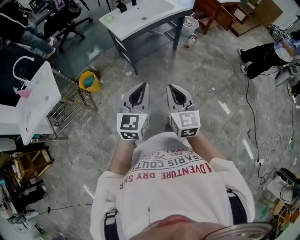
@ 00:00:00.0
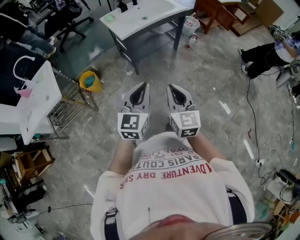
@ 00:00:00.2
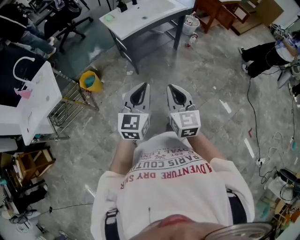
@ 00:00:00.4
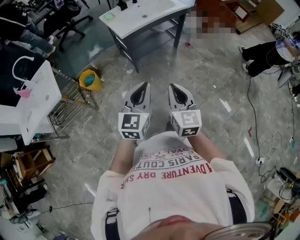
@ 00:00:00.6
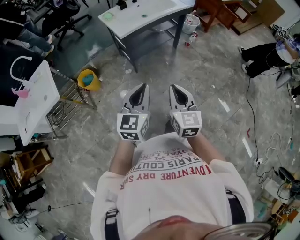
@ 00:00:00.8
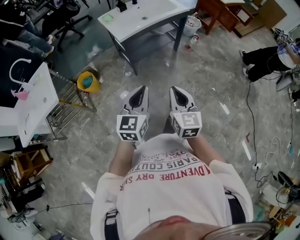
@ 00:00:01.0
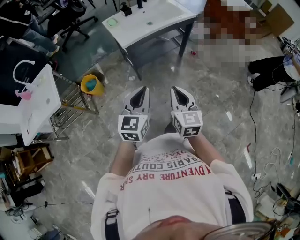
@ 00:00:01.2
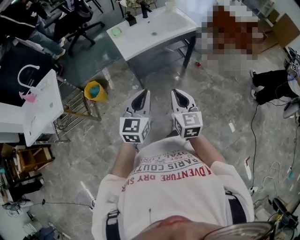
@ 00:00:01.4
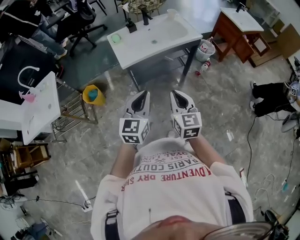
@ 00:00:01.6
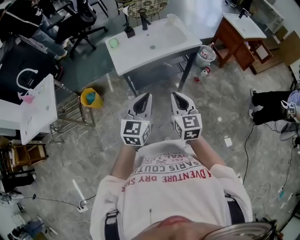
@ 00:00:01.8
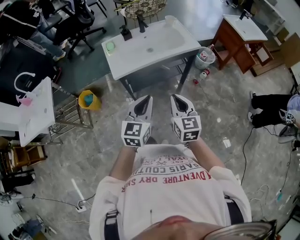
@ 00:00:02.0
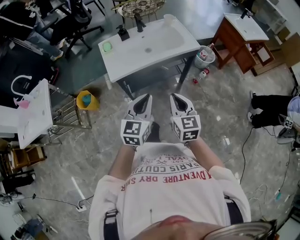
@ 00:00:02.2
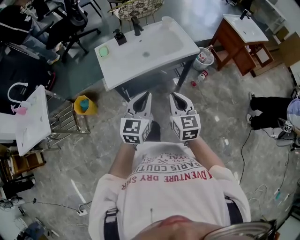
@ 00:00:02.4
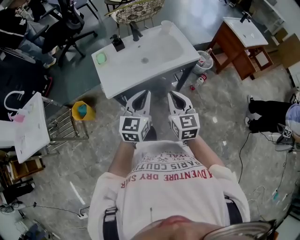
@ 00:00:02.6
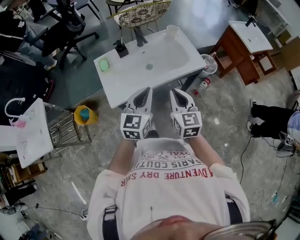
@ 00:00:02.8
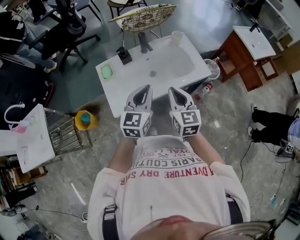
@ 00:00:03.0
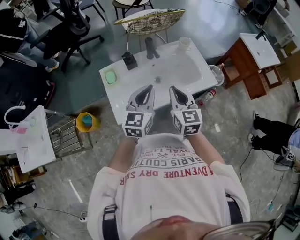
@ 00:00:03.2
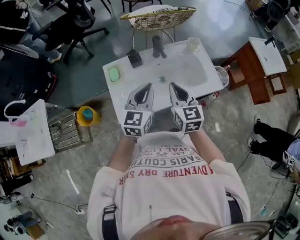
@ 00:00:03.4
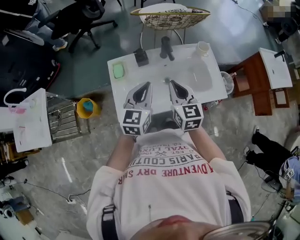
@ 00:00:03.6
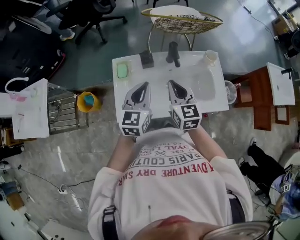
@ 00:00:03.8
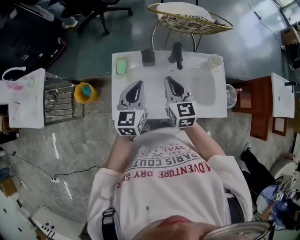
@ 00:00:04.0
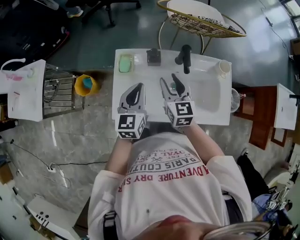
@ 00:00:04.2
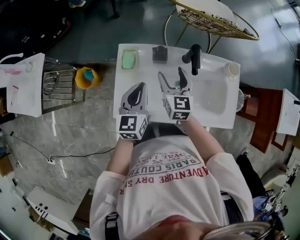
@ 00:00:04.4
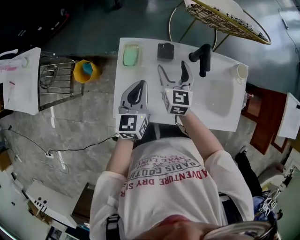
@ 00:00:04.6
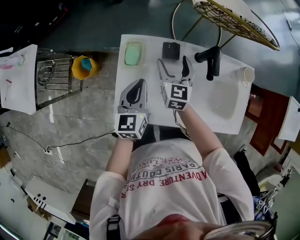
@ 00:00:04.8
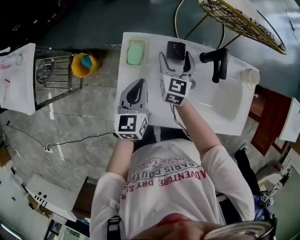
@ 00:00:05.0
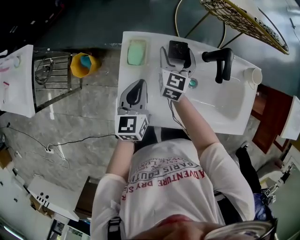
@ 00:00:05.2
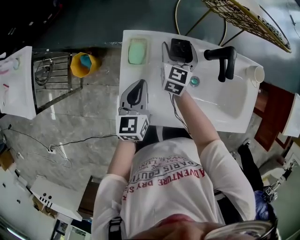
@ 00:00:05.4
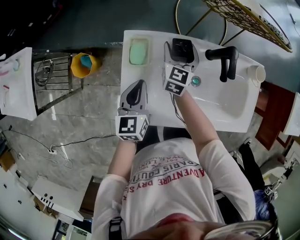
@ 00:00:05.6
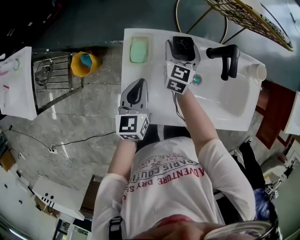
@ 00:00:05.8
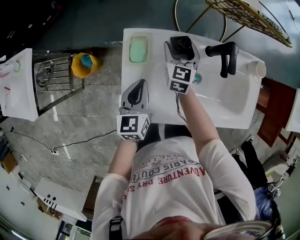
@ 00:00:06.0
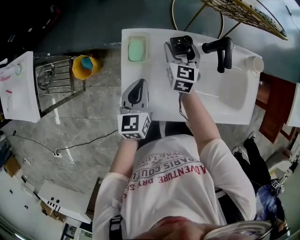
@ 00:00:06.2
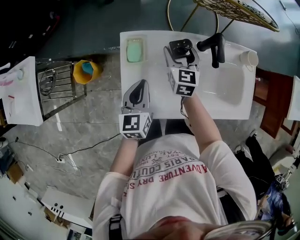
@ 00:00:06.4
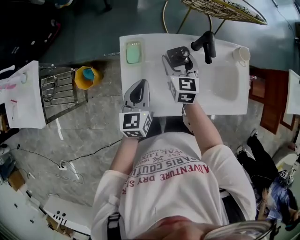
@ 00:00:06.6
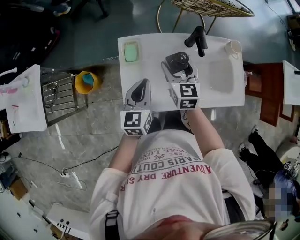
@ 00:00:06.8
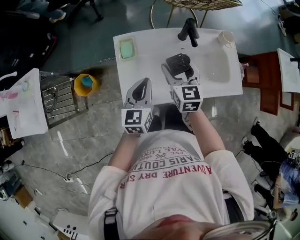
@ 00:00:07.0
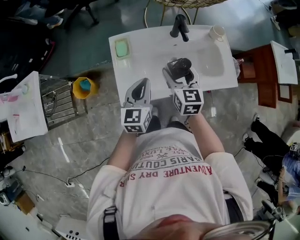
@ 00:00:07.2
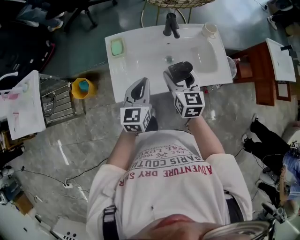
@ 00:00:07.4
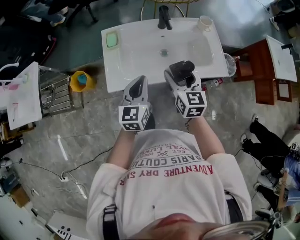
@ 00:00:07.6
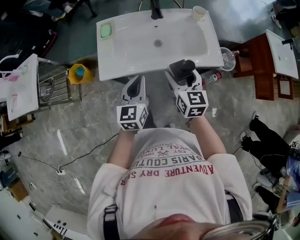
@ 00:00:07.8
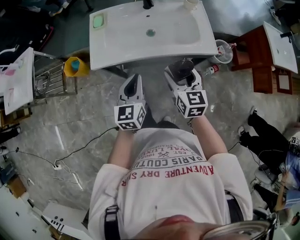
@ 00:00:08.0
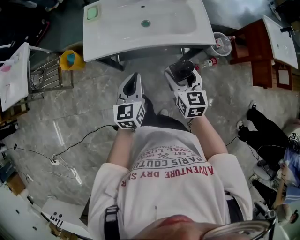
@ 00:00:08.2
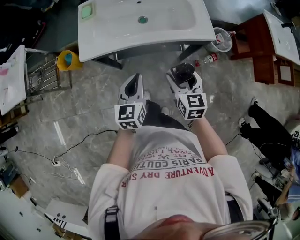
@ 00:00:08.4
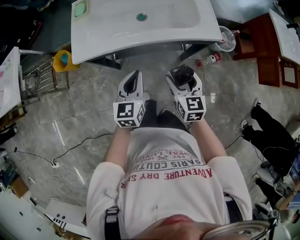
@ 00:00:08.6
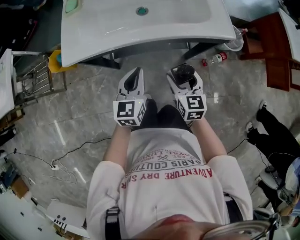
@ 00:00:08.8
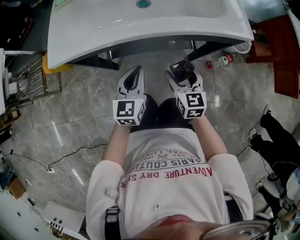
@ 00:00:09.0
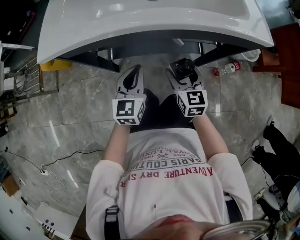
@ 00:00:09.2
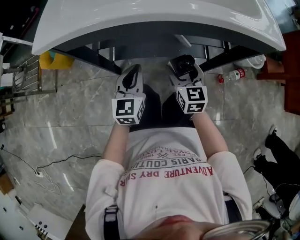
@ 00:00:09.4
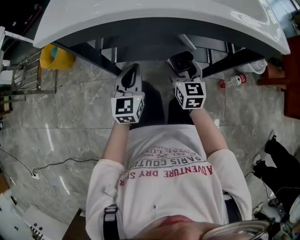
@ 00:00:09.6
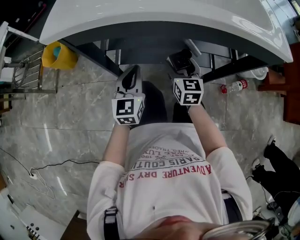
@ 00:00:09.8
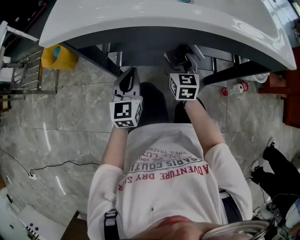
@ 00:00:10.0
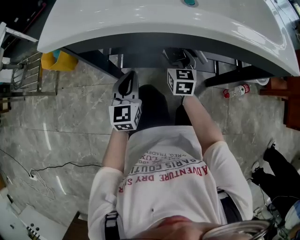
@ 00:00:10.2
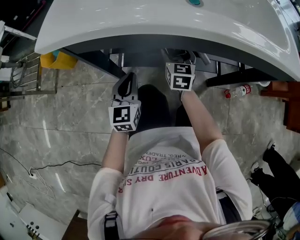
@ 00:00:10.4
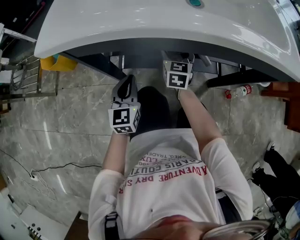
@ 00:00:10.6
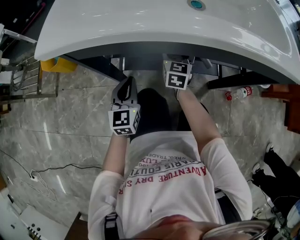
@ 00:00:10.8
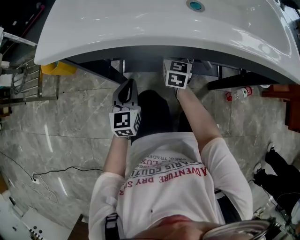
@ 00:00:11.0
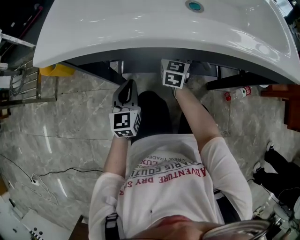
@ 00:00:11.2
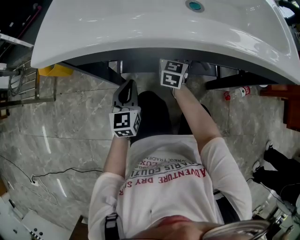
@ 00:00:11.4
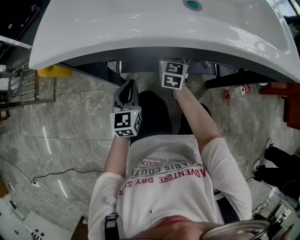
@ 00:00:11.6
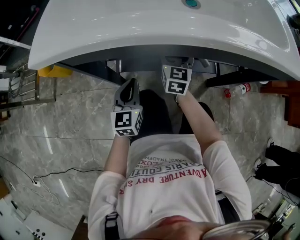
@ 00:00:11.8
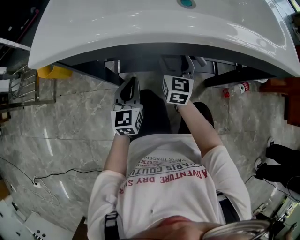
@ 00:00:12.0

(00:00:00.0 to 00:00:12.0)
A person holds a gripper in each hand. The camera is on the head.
00:00:00.0 - 00:00:01.6: The grippers both shift forward by approximately 25 cm.
00:00:01.6 - 00:00:03.0: The grippers both shift forward by roughly 40 cm.
00:00:03.0 - 00:00:04.4: The right gripper shifts by approximately 35 cm, changes its angle by roughly 20 degrees, and opens, while the left gripper changes place by some 25 cm, and changes its angle by approximately 40 degrees.
00:00:04.4 - 00:00:06.0: The right gripper travels downward, forward and to the left by about 15 cm. The left gripper heads downward and to the left, covering approximately 15 cm.
00:00:06.0 - 00:00:07.6: The right gripper is displaced backward, upward and to the right by some 40 cm, while the left gripper goes approximately 25 cm backward, to the right and upward.
00:00:07.6 - 00:00:09.0: Both grippers travel together downward, about 35 cm.
00:00:09.0 - 00:00:10.4: The left gripper goes about 20 cm downward and to the left, while the right gripper is displaced forward, downward and to the left by roughly 30 cm.
00:00:10.4 - 00:00:12.0: The grippers move only a little.

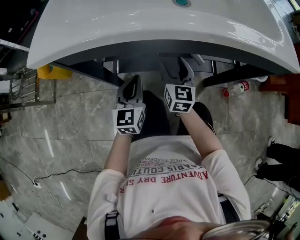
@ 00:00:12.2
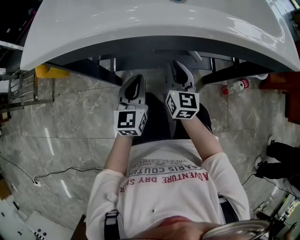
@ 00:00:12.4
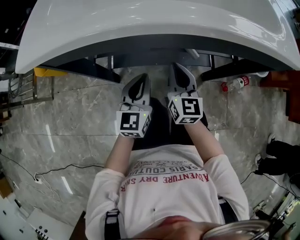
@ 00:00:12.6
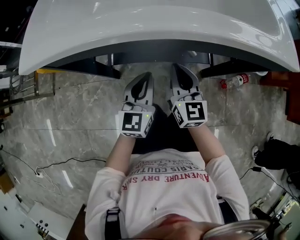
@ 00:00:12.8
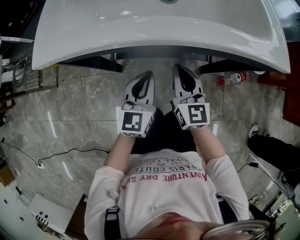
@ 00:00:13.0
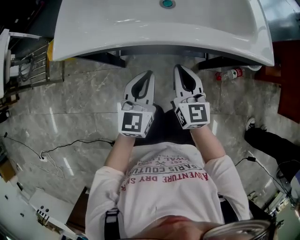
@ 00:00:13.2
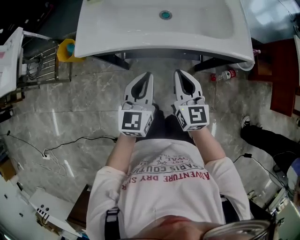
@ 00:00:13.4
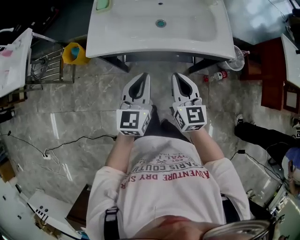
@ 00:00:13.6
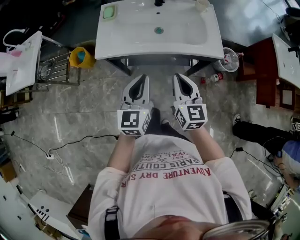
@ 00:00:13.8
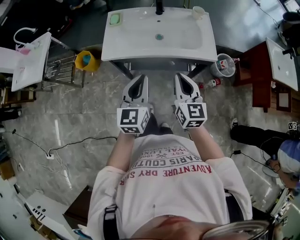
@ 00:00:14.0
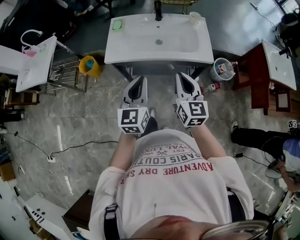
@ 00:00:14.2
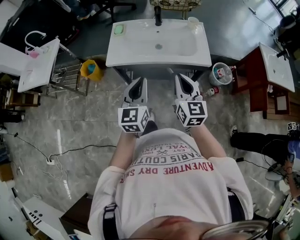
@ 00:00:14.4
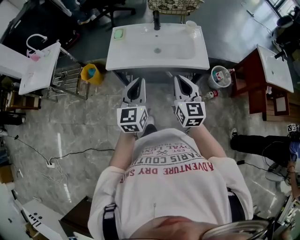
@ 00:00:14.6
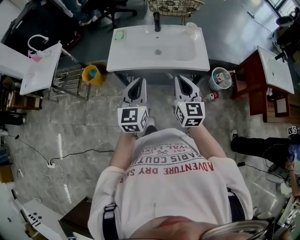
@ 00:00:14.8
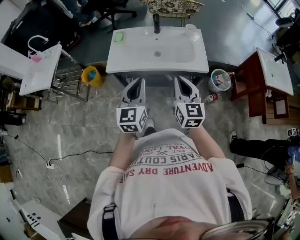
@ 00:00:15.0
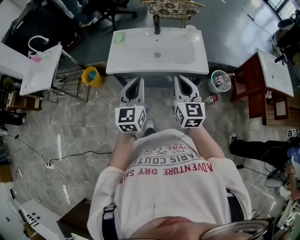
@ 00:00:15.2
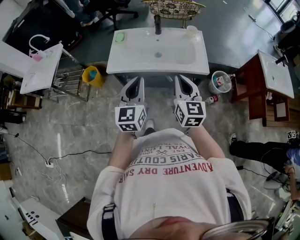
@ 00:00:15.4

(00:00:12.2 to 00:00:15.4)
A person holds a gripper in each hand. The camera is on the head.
00:00:12.2 - 00:00:13.8: The left gripper travels upward by approximately 50 cm, while the right gripper heads upward and backward, covering about 50 cm, and closes.
00:00:13.8 - 00:00:15.4: Both grippers travel together upward, approximately 15 cm.

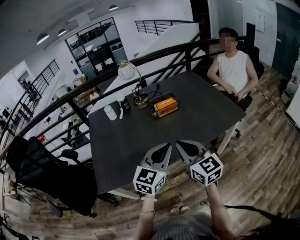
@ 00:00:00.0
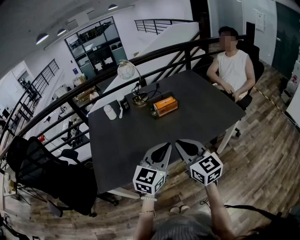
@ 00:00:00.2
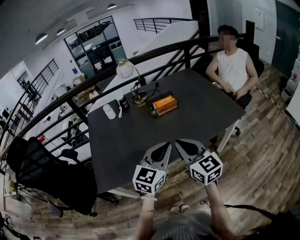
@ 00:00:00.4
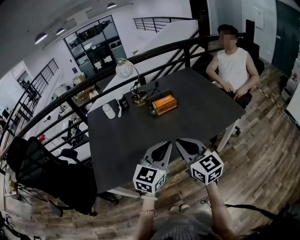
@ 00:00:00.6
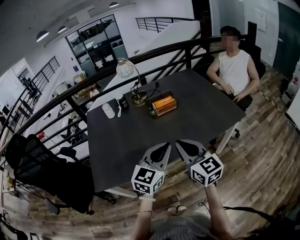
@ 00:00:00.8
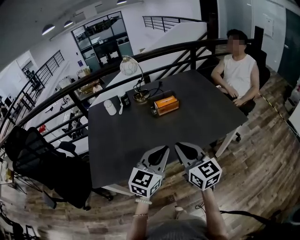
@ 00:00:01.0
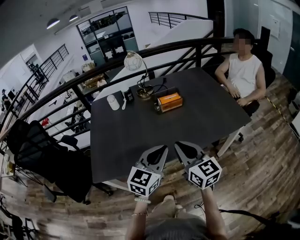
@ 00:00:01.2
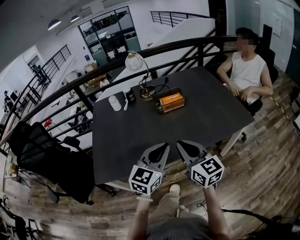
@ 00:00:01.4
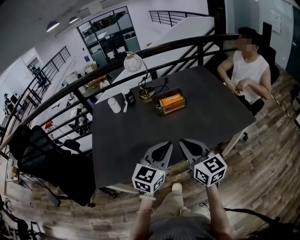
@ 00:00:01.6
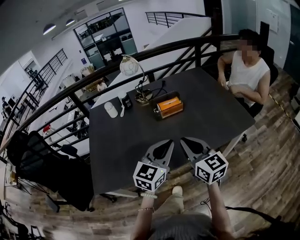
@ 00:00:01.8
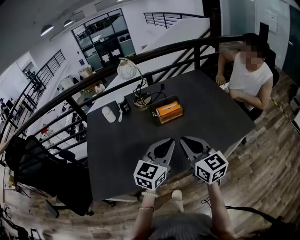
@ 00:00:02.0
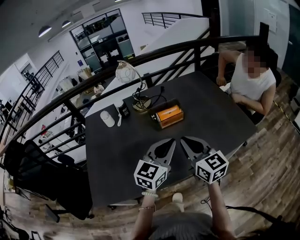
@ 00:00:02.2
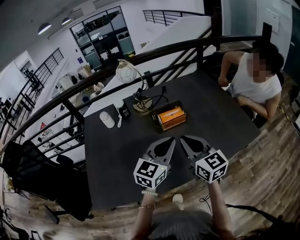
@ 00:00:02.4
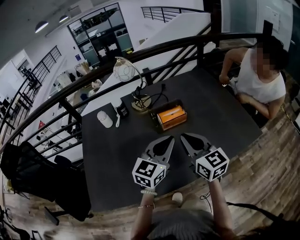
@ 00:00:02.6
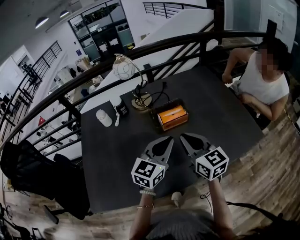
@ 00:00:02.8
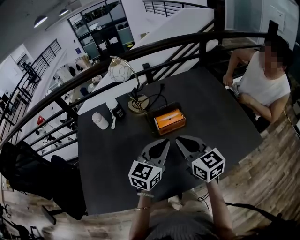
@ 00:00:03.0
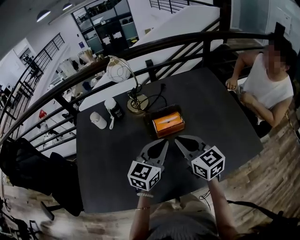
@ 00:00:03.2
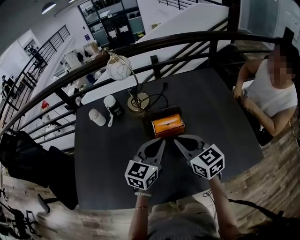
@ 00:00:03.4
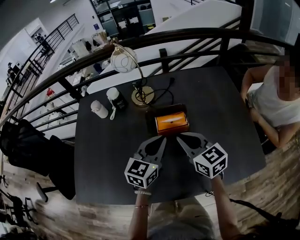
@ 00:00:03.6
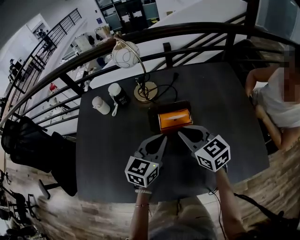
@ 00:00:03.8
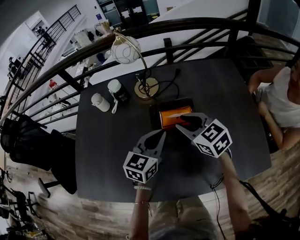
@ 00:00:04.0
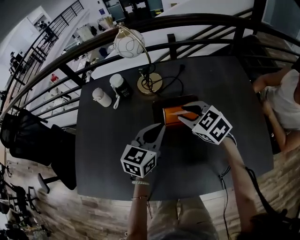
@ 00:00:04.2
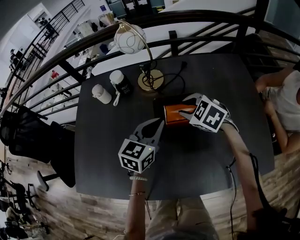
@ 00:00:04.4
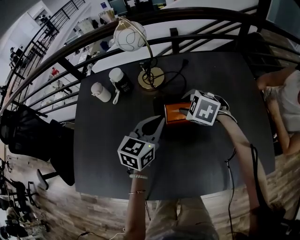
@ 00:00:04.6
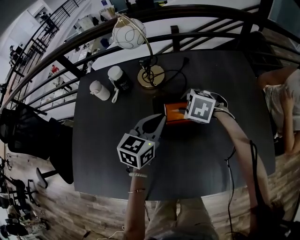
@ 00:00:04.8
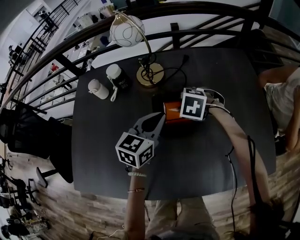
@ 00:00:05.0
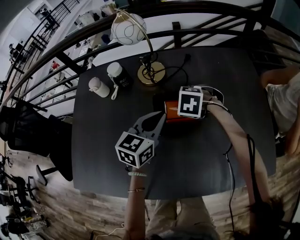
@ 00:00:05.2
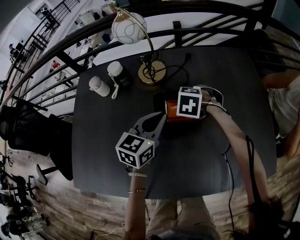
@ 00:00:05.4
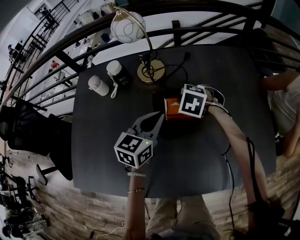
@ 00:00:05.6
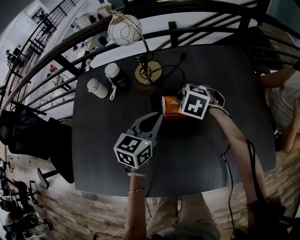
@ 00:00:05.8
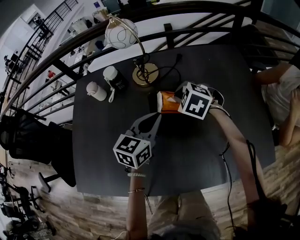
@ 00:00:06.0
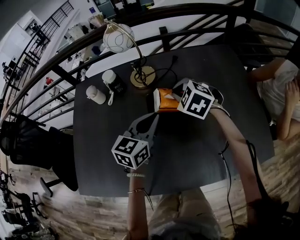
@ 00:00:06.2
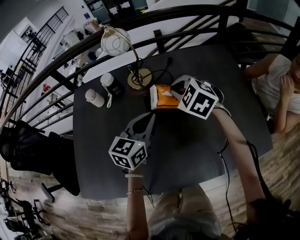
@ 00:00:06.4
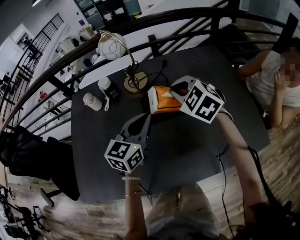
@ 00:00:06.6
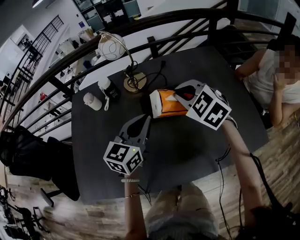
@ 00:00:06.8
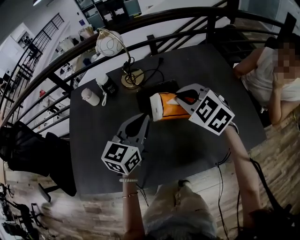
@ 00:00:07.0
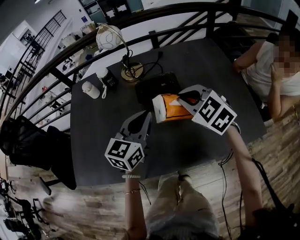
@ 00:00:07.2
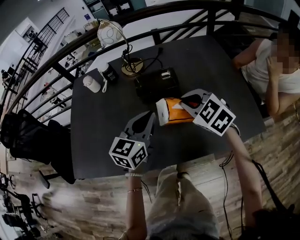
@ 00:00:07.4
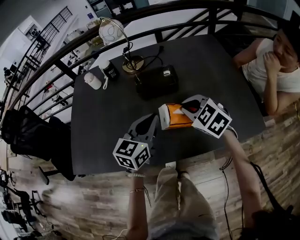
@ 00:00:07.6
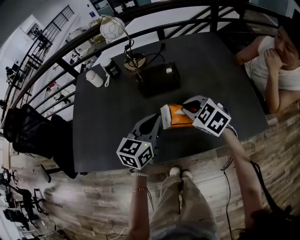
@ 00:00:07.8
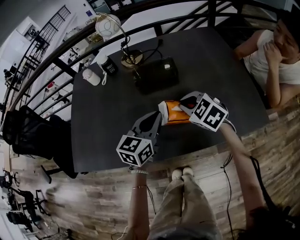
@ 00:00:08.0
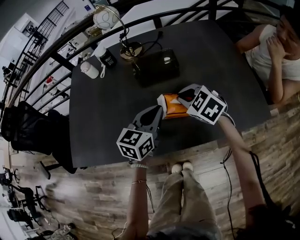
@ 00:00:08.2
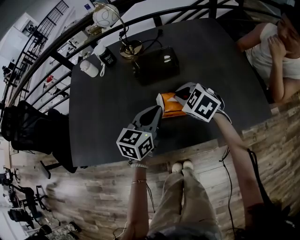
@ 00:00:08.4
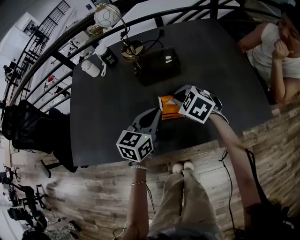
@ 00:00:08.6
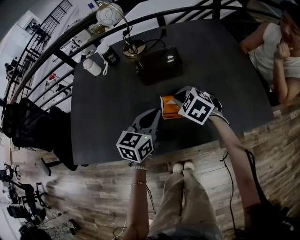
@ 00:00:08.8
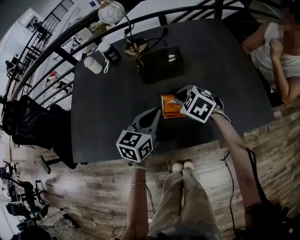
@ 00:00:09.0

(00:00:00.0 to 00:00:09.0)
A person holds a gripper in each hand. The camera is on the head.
00:00:00.0 - 00:00:01.6: The grippers stay close to where they were, moving slightly.
00:00:01.6 - 00:00:03.0: The grippers both shift forward by roughly 20 cm.
00:00:03.0 - 00:00:04.4: The left gripper goes some 10 cm forward. Meanwhile the right gripper goes roughly 20 cm forward and downward, tilts its fingers approximately 40 degrees downward, and opens.
00:00:04.4 - 00:00:06.0: The right gripper reaches some 10 cm downward, then returns, and closes its fingers.
00:00:06.0 - 00:00:07.6: Both grippers travel together backward, some 20 cm.
00:00:07.6 - 00:00:09.0: Both grippers travel together downward, some 5 cm.
